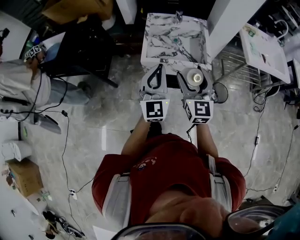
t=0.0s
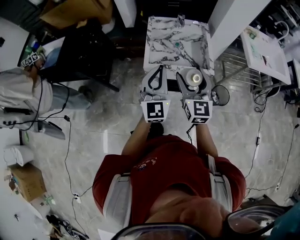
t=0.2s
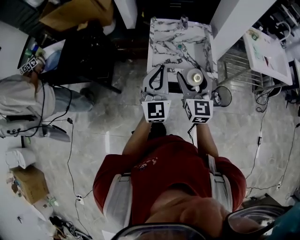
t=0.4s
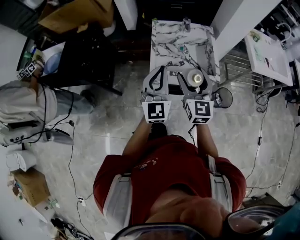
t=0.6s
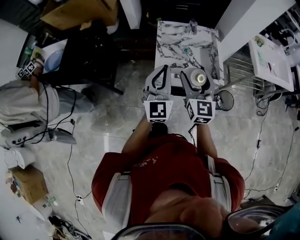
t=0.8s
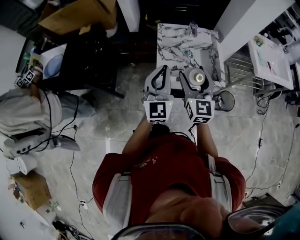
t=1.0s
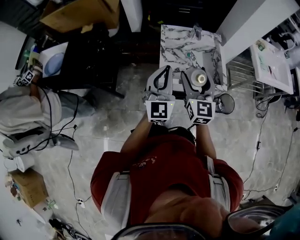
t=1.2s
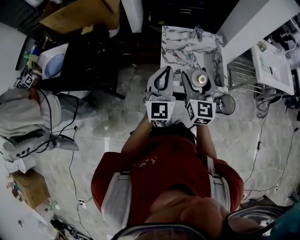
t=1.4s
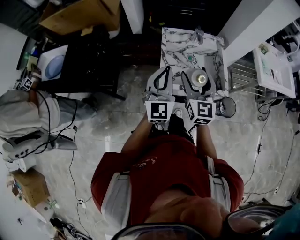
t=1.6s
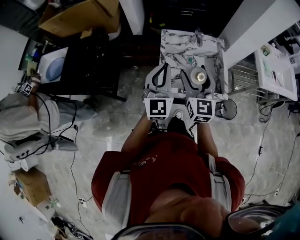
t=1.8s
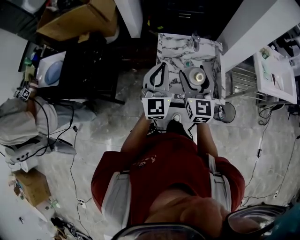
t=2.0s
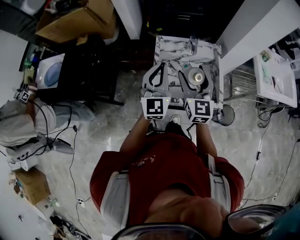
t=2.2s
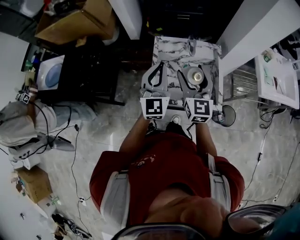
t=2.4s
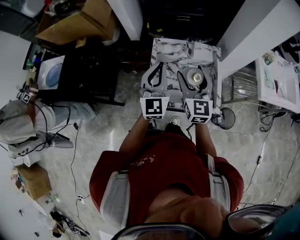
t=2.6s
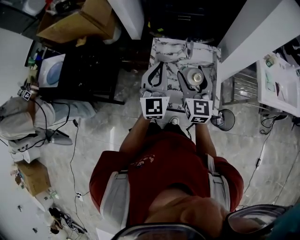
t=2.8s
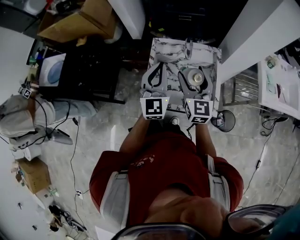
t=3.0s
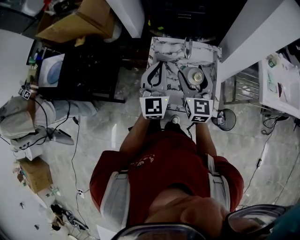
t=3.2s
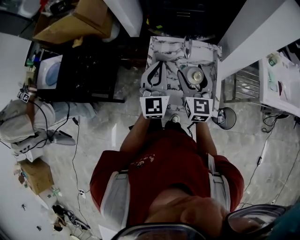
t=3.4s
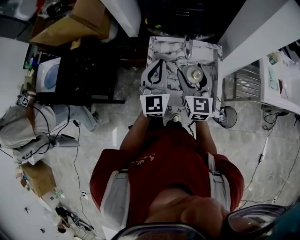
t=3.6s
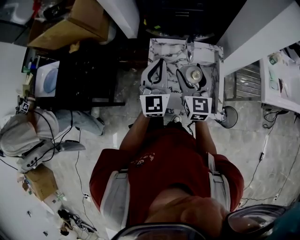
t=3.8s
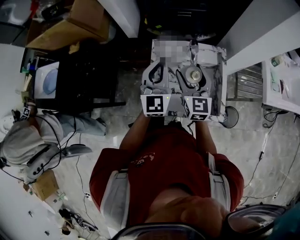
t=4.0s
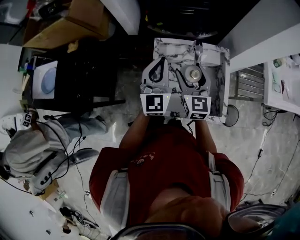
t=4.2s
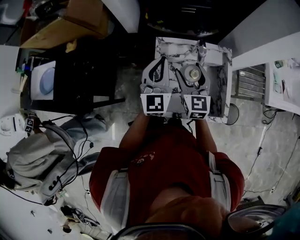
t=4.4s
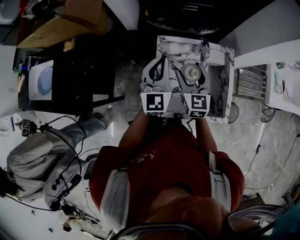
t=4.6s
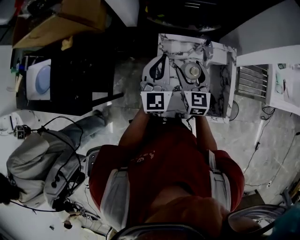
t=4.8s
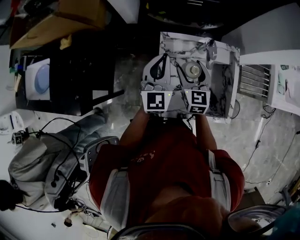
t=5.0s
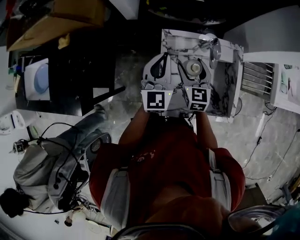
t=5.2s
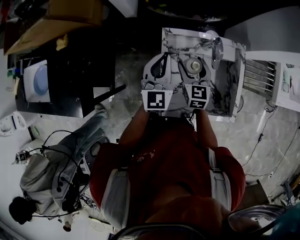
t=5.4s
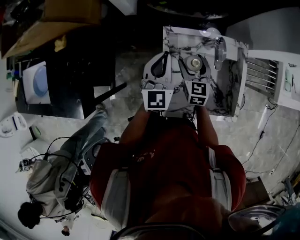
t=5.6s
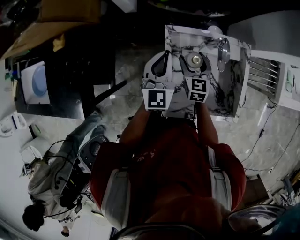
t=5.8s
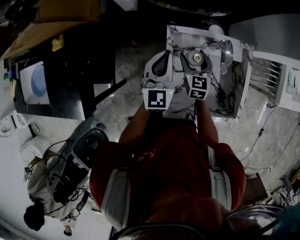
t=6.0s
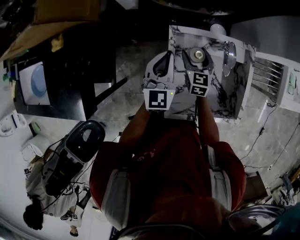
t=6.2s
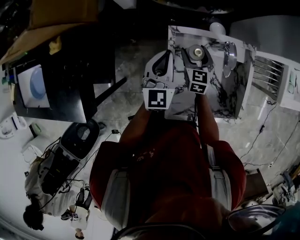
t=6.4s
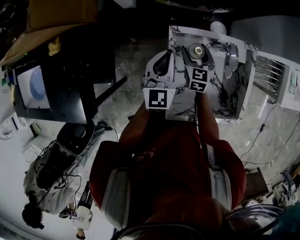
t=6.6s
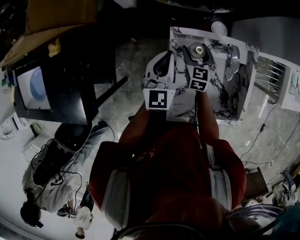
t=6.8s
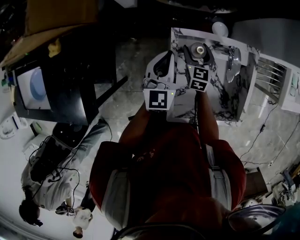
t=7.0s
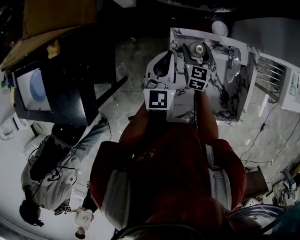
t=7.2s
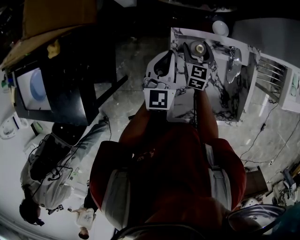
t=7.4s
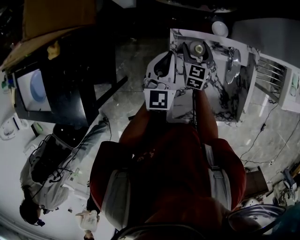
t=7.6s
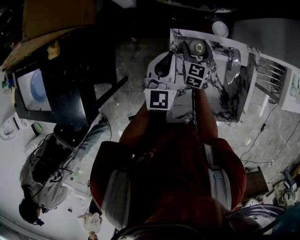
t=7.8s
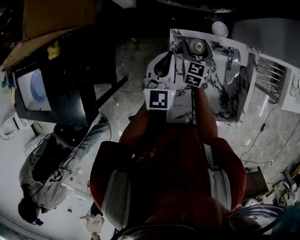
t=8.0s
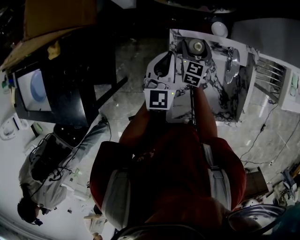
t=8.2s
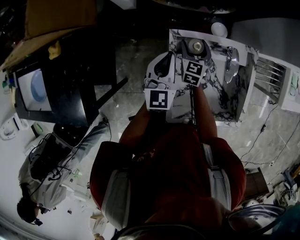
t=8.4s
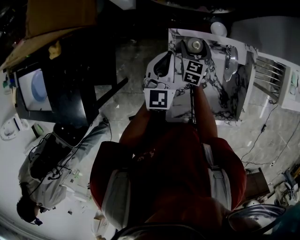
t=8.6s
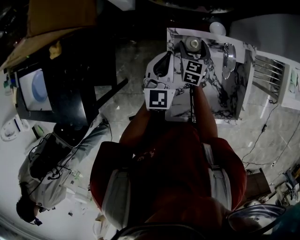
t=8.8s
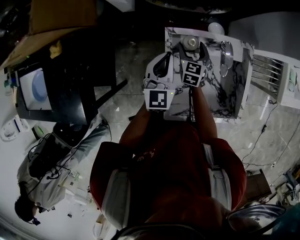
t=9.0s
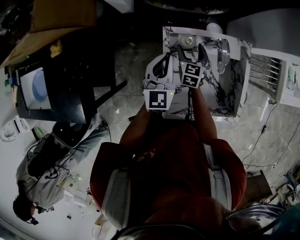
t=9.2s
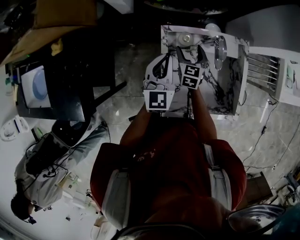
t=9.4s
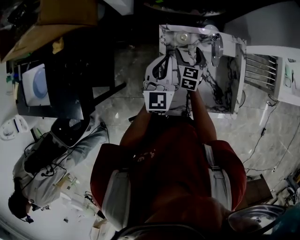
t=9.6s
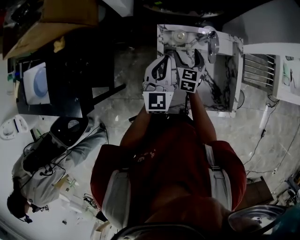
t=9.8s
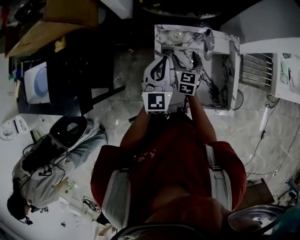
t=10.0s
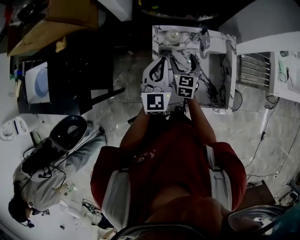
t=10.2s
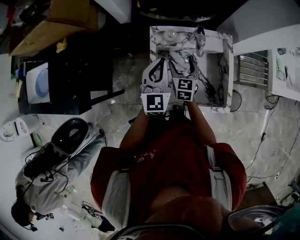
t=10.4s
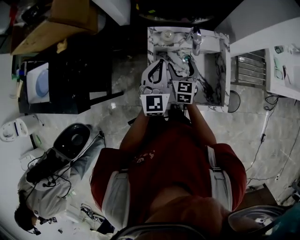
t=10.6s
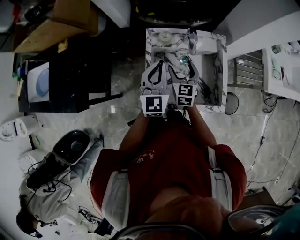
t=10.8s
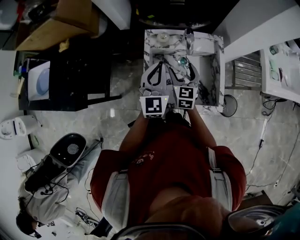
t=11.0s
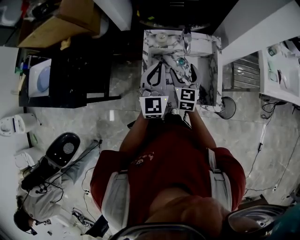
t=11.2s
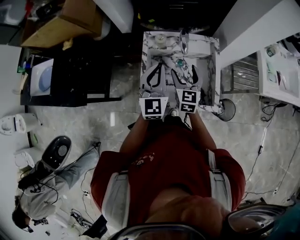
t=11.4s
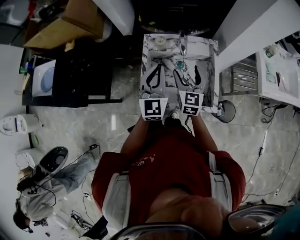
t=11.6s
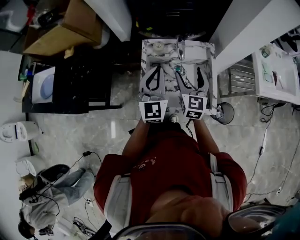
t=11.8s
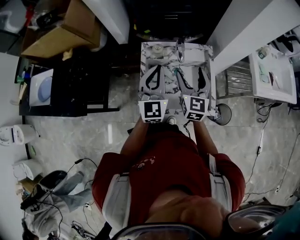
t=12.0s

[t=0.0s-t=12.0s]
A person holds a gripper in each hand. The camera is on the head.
t=0.0s to t=1.6s: Both grippers move forward and to the left, about 20 cm.
t=1.6s to t=3.0s: The grippers both shift forward and to the right by some 20 cm.
t=3.0s to t=4.4s: The left gripper travels forward and to the left by roughly 15 cm. The right gripper heads forward, to the left and downward, covering approximately 15 cm.
t=4.4s to t=6.0s: The left gripper is displaced downward, forward and to the left by approximately 15 cm. Meanwhile the right gripper is displaced downward and forward by roughly 20 cm.
t=6.0s to t=7.6s: The left gripper ends up approximately 5 cm from where it was, while the right gripper goes approximately 5 cm forward.
t=7.6s to t=9.0s: The grippers move only a little.
t=9.0s to t=10.4s: The left gripper travels backward and to the right by some 15 cm. The right gripper is displaced backward and upward by approximately 15 cm.
t=10.4s to t=12.0s: The right gripper heads upward, to the right and backward, covering about 20 cm; the left gripper heads upward, backward and to the right, covering some 15 cm.

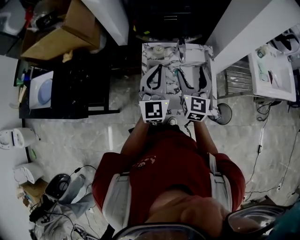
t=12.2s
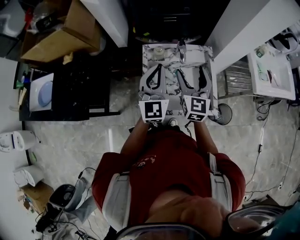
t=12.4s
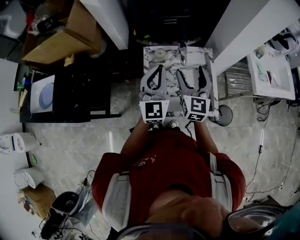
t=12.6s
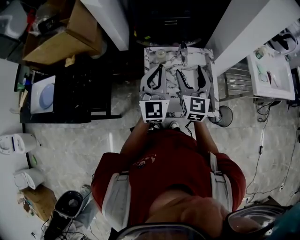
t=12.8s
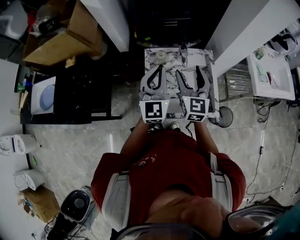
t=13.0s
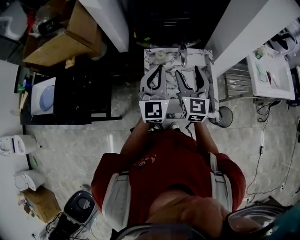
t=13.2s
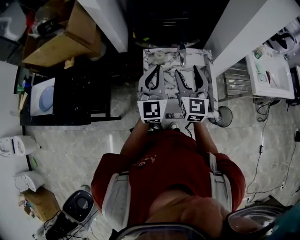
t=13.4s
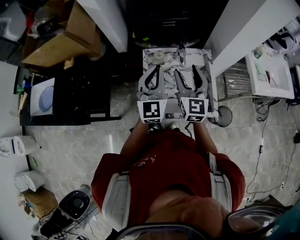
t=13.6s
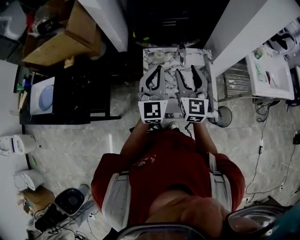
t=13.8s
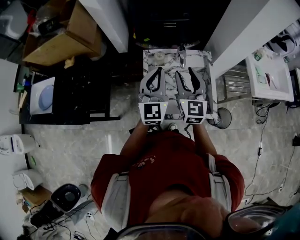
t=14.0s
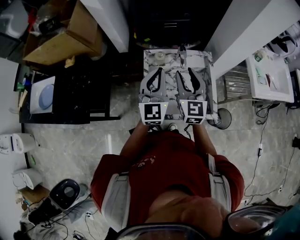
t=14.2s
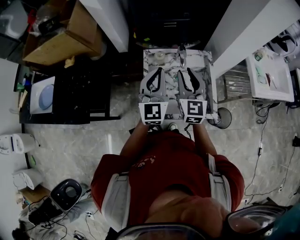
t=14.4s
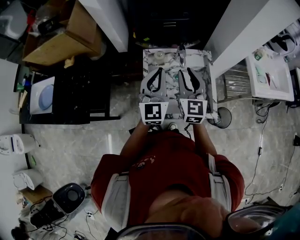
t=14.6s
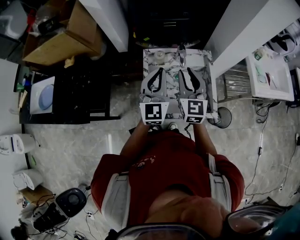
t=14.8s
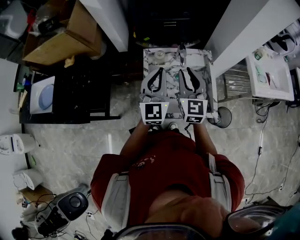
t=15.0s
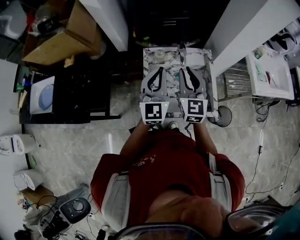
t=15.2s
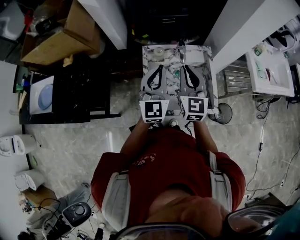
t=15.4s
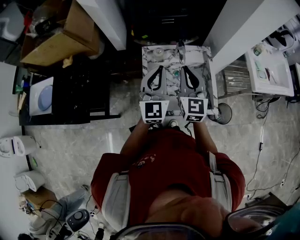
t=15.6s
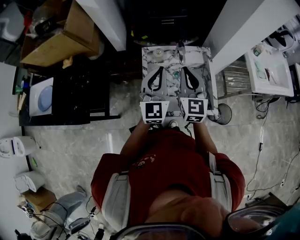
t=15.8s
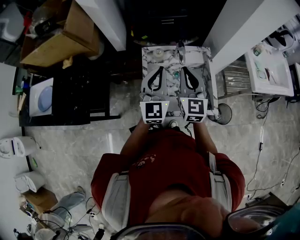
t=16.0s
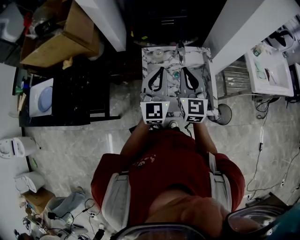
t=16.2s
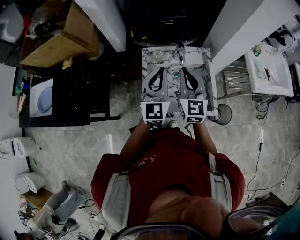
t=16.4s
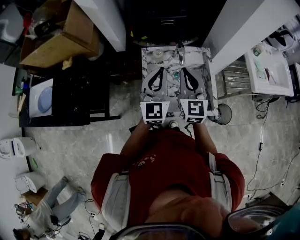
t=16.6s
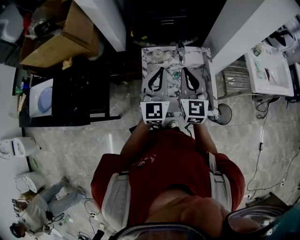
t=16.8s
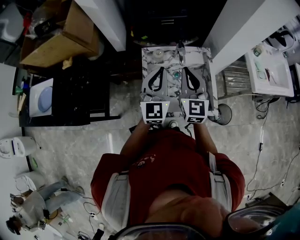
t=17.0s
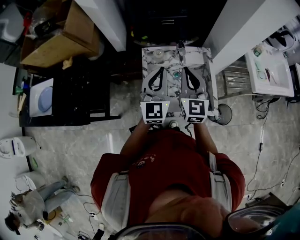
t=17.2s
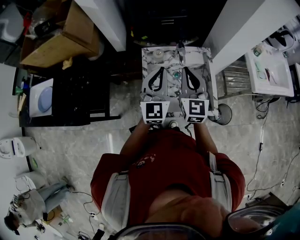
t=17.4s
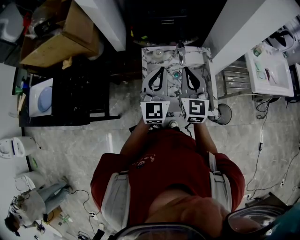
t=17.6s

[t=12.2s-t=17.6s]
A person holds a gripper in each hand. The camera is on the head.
t=12.2s to t=13.6s: The right gripper changes place by some 5 cm.
t=13.6s to t=15.0s: The right gripper closes its fingers.
t=15.0s to t=17.6s: Both grippers stay put.

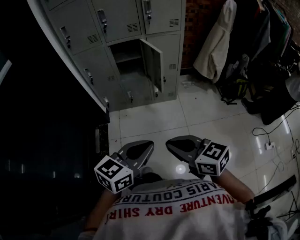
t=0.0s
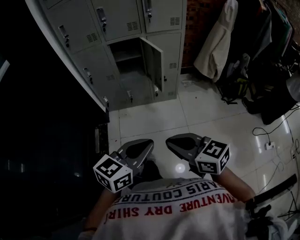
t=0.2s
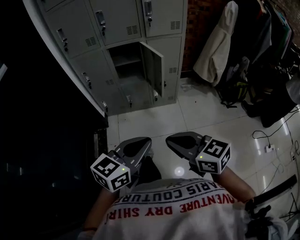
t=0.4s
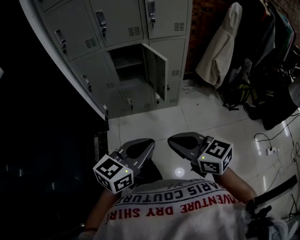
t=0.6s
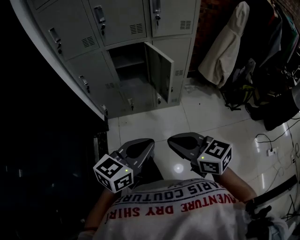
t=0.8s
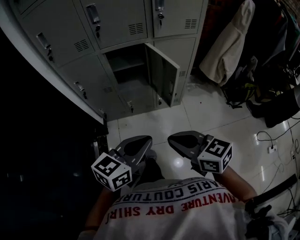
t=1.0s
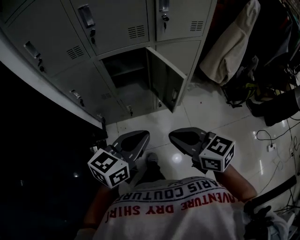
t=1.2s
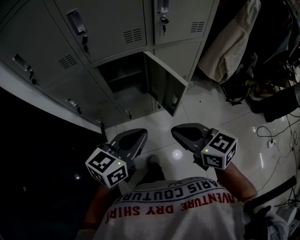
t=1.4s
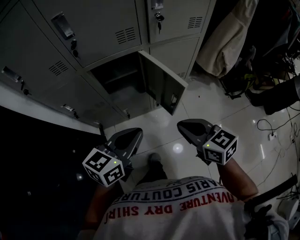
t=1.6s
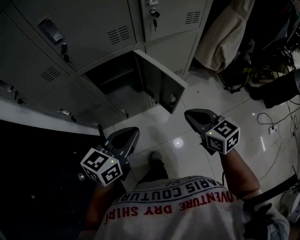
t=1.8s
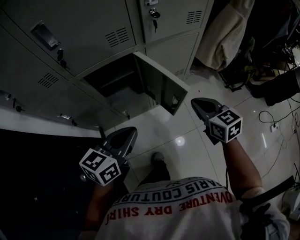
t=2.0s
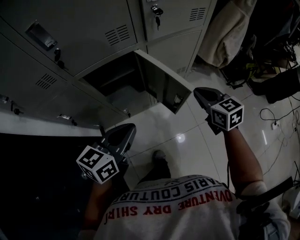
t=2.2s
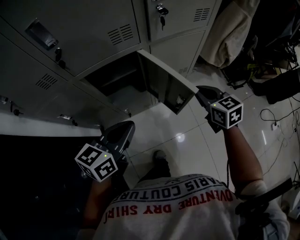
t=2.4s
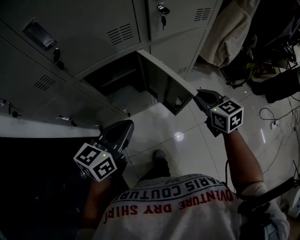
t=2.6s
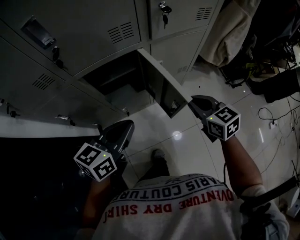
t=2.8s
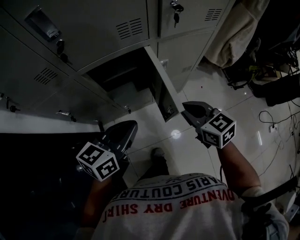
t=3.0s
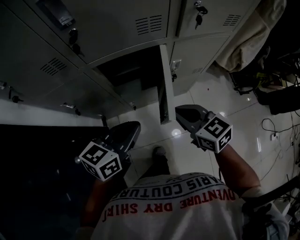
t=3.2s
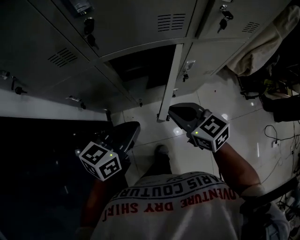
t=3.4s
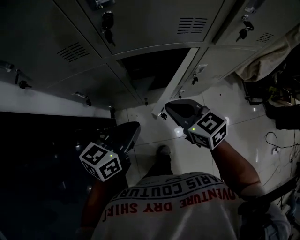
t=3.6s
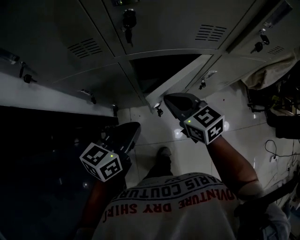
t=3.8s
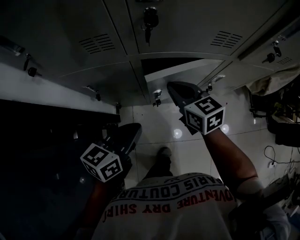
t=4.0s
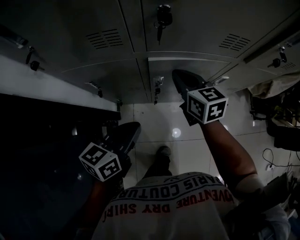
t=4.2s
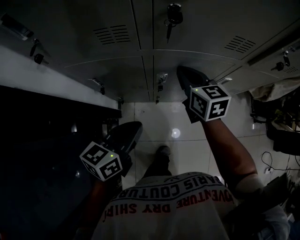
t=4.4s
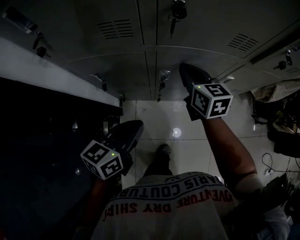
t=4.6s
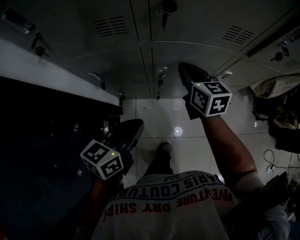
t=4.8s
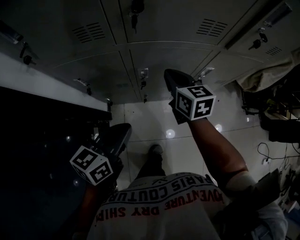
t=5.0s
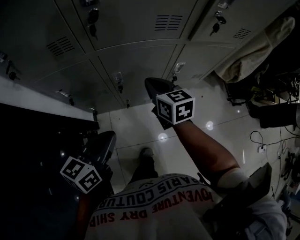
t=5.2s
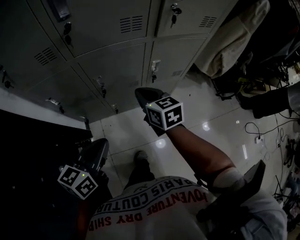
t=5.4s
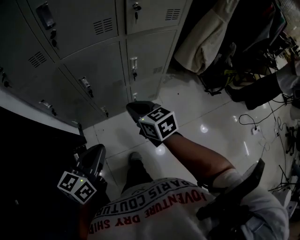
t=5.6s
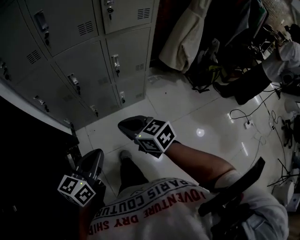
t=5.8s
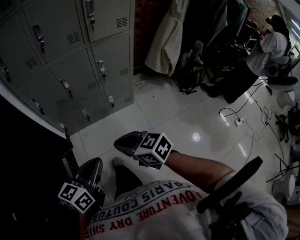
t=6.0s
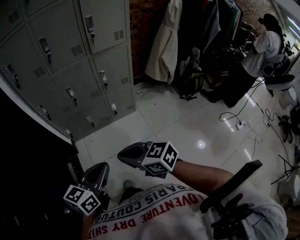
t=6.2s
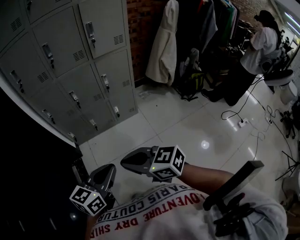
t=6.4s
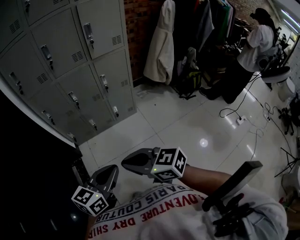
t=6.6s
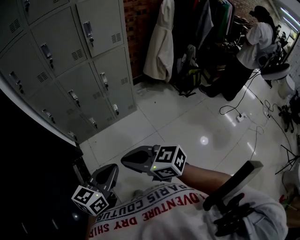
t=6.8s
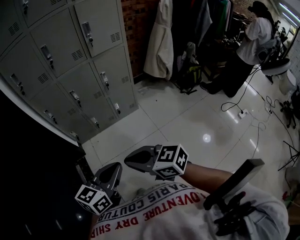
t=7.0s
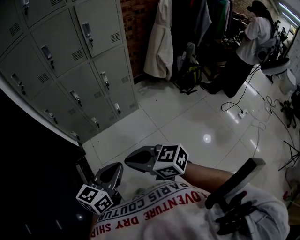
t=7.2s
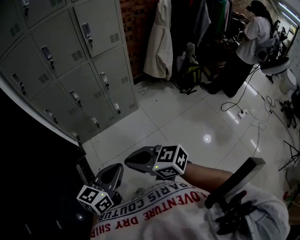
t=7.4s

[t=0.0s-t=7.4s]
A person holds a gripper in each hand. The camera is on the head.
t=0.0s to t=1.4s: The two grippers go some 40 cm forward.
t=1.4s to t=3.0s: The left gripper travels forward, to the left and downward by some 15 cm; the right gripper moves forward and downward, approximately 20 cm.
t=3.0s to t=4.4s: The right gripper travels to the left and forward by about 30 cm. The left gripper goes approximately 15 cm to the left, and changes its angle by about 20 degrees.
t=4.4s to t=6.0s: The two grippers travel together, backward and to the right, roughly 50 cm.
t=6.0s to t=7.4s: The two grippers go roughly 15 cm backward and upward.
